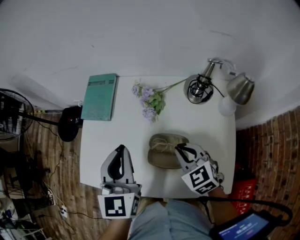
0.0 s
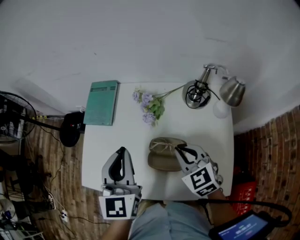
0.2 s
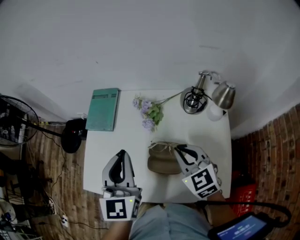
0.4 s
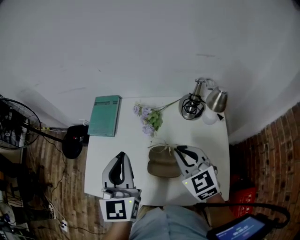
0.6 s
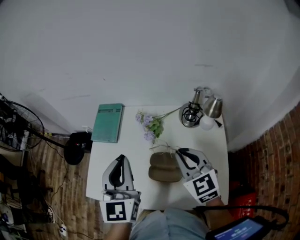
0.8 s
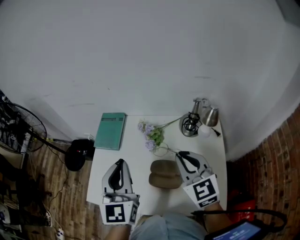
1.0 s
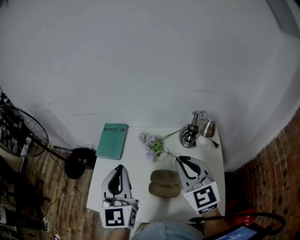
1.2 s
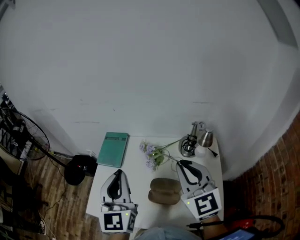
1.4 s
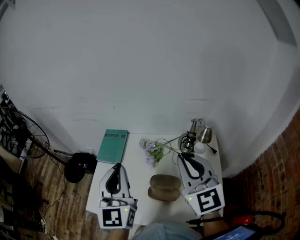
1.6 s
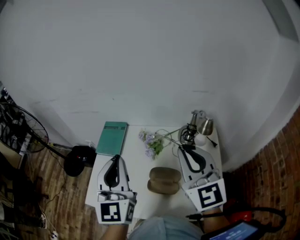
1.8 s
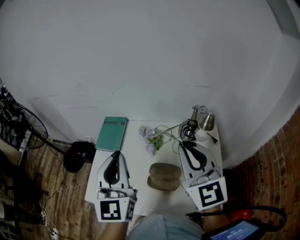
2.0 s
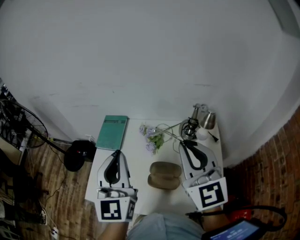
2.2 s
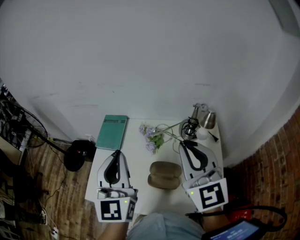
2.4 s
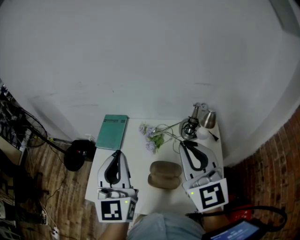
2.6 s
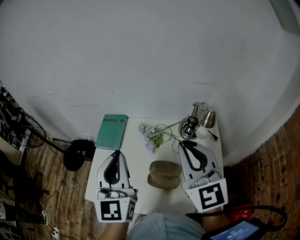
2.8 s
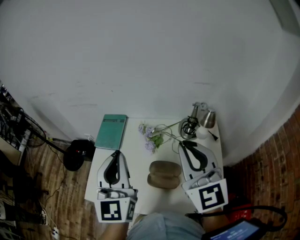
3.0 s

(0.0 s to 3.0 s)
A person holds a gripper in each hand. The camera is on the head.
0.0 s - 1.6 s: The right gripper travels upward by roughly 25 cm, and points its fingers some 40 degrees further upward, while the left gripper goes some 15 cm upward.
1.6 s - 3.0 s: There are only small adjustments of the grippers.

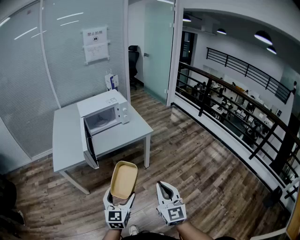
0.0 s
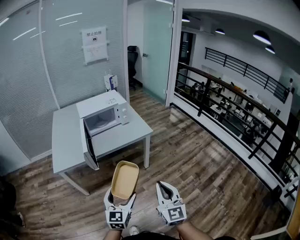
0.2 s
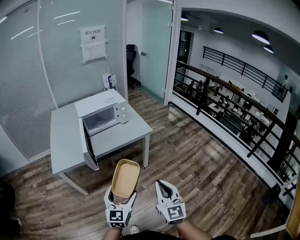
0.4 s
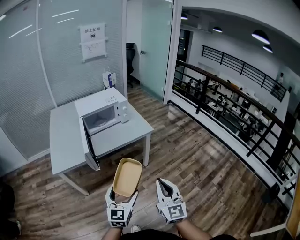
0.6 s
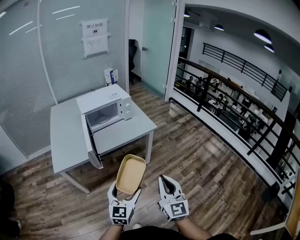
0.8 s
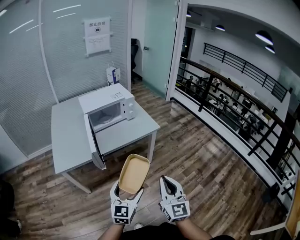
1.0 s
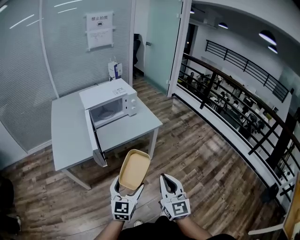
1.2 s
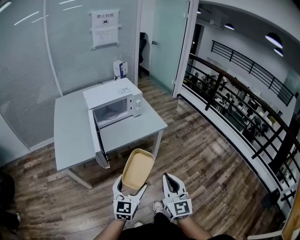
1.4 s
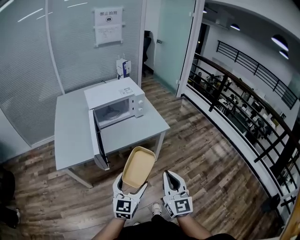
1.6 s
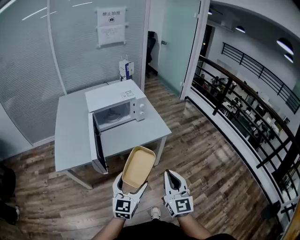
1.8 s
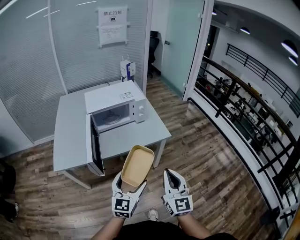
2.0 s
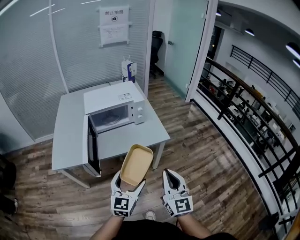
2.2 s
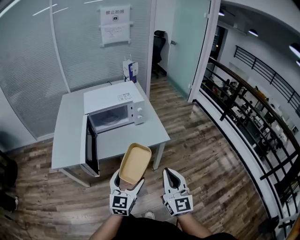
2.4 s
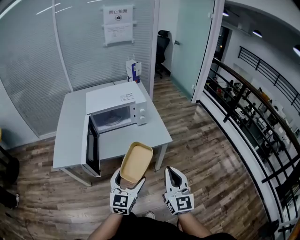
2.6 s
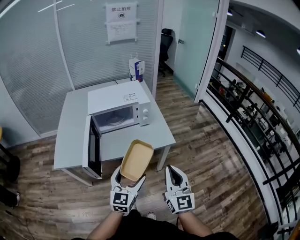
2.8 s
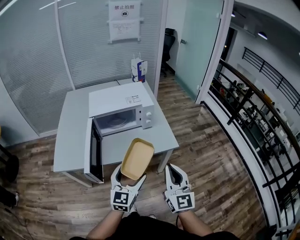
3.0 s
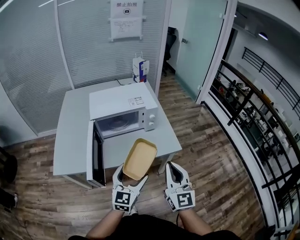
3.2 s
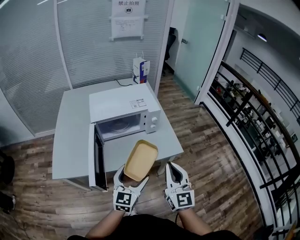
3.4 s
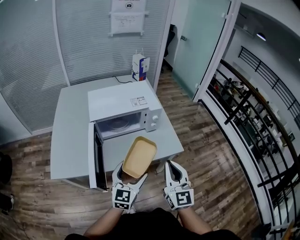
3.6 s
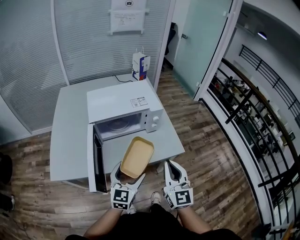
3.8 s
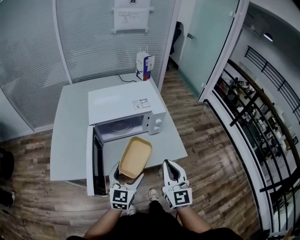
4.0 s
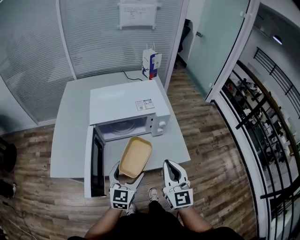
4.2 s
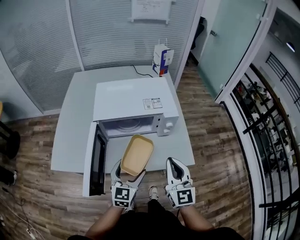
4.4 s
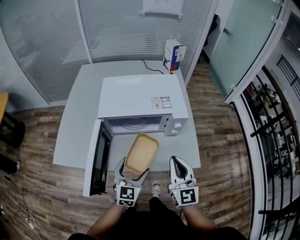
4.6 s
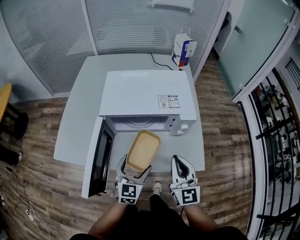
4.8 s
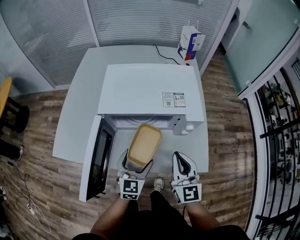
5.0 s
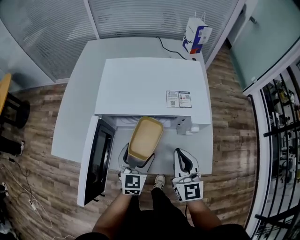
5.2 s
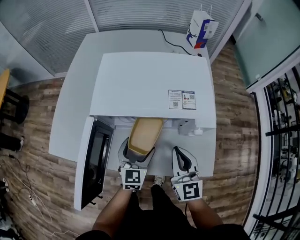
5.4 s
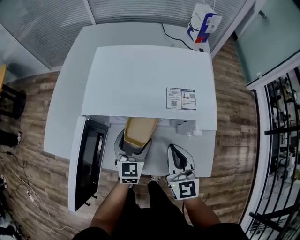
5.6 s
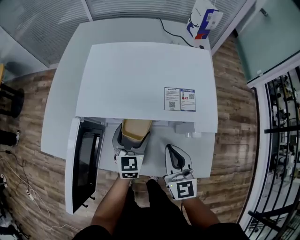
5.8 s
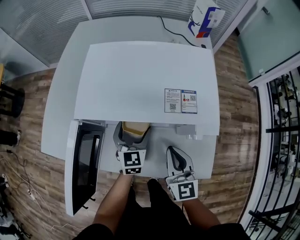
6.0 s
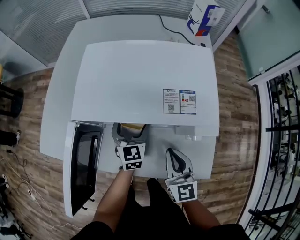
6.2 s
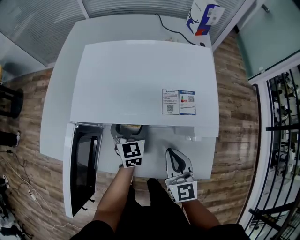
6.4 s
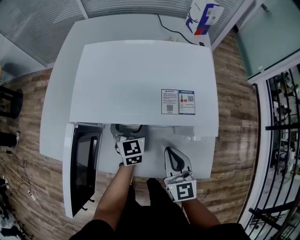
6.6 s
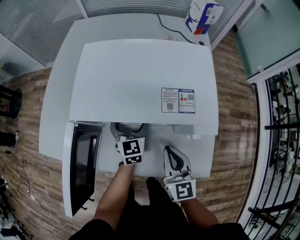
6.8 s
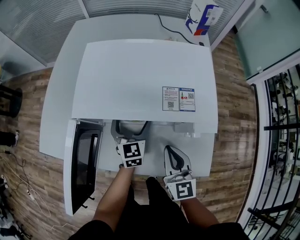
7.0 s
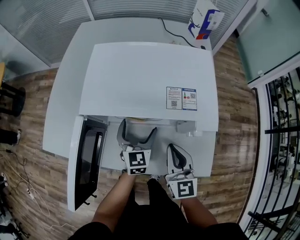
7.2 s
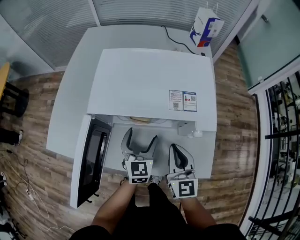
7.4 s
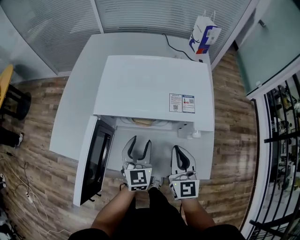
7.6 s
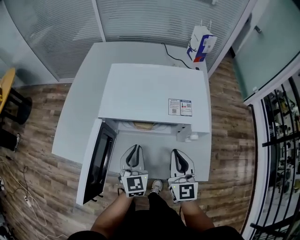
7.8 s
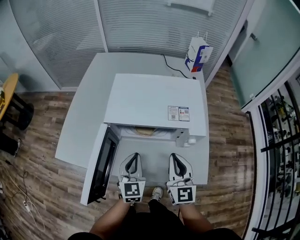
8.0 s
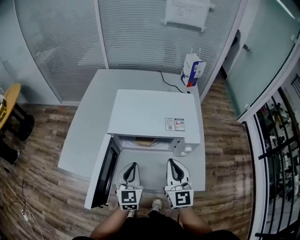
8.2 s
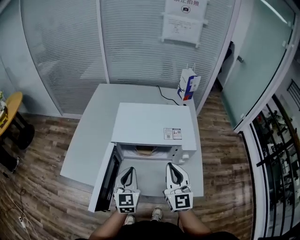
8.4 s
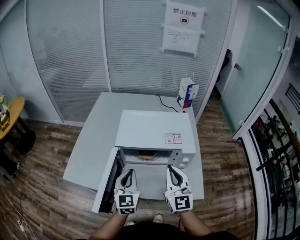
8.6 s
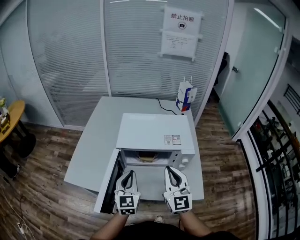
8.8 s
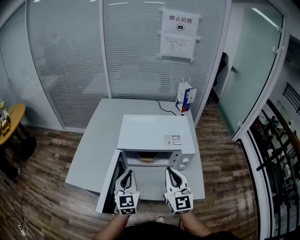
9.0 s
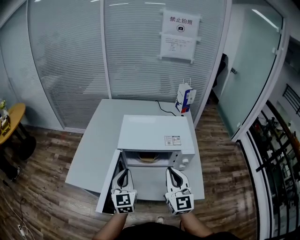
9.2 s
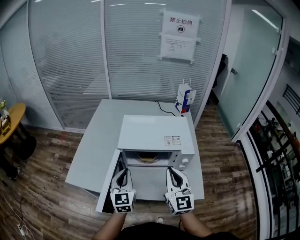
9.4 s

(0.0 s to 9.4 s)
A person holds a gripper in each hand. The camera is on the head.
0.0 s - 1.6 s: The right gripper moves forward and to the left, about 15 cm, while the left gripper goes approximately 10 cm forward.
1.6 s - 3.2 s: The grippers both shift forward by about 20 cm.
3.2 s - 4.8 s: The two grippers go approximately 20 cm forward and downward. The left gripper swivels approximately 20 degrees.
4.8 s - 6.2 s: The right gripper moves downward and forward, some 15 cm. The left gripper travels forward and downward by some 25 cm.
6.2 s - 7.8 s: The right gripper moves upward, some 10 cm, while the left gripper moves backward and upward, roughly 15 cm, and closes its fingers.
7.8 s - 9.4 s: The left gripper moves upward and to the left, some 15 cm; the right gripper shifts roughly 15 cm upward.

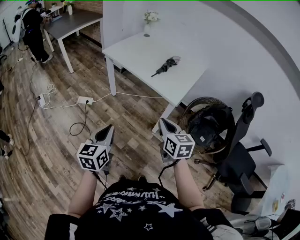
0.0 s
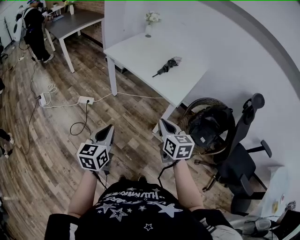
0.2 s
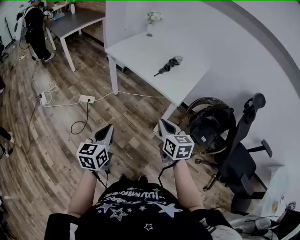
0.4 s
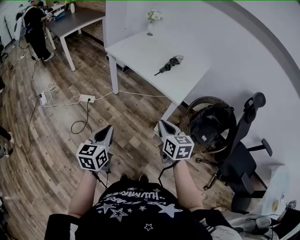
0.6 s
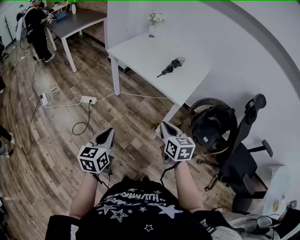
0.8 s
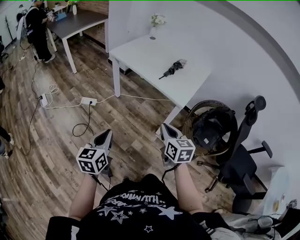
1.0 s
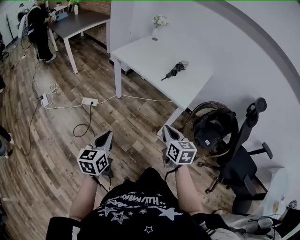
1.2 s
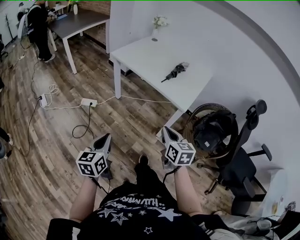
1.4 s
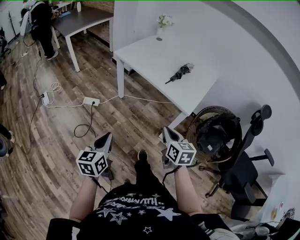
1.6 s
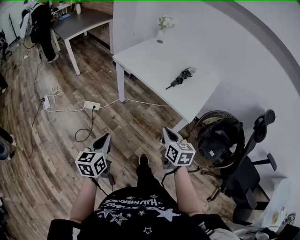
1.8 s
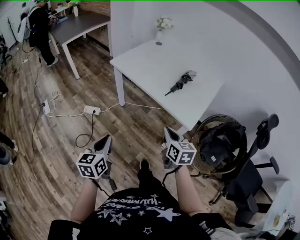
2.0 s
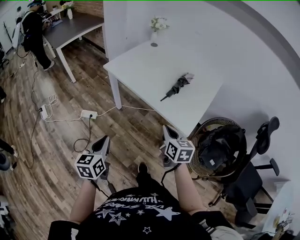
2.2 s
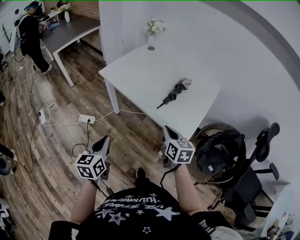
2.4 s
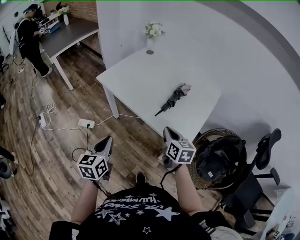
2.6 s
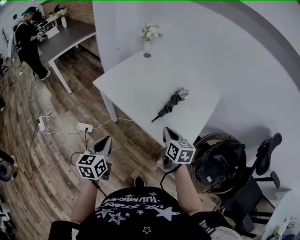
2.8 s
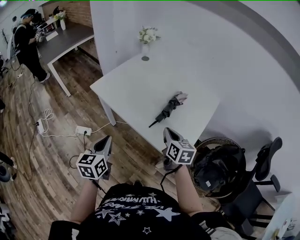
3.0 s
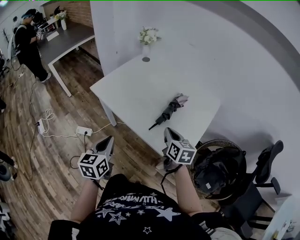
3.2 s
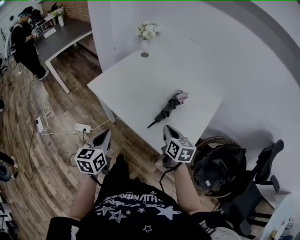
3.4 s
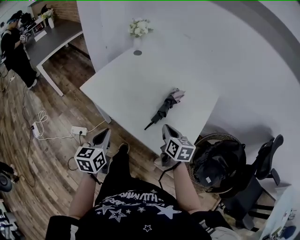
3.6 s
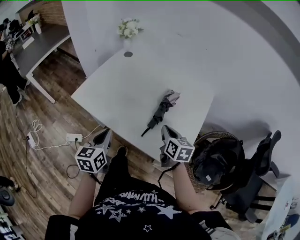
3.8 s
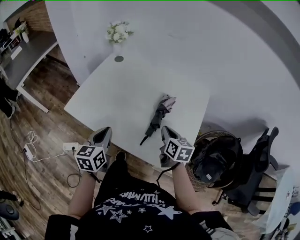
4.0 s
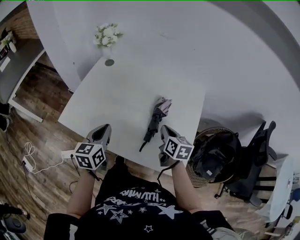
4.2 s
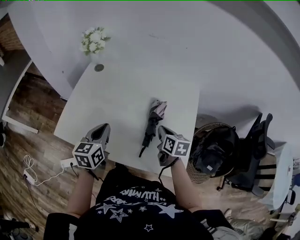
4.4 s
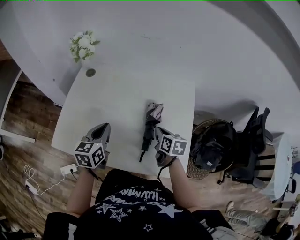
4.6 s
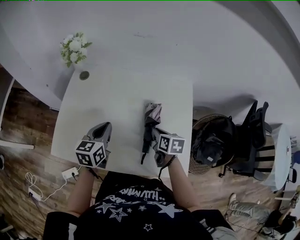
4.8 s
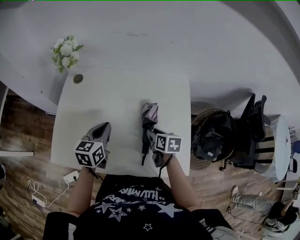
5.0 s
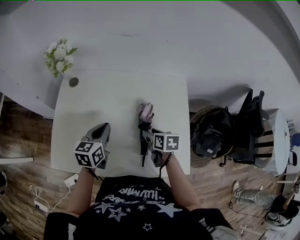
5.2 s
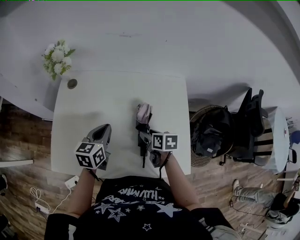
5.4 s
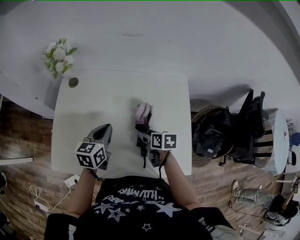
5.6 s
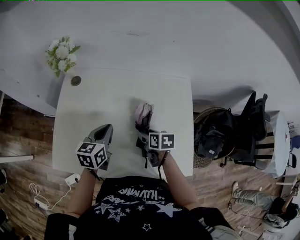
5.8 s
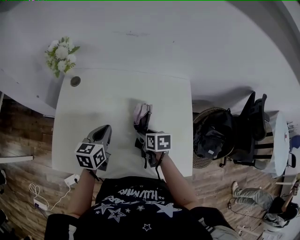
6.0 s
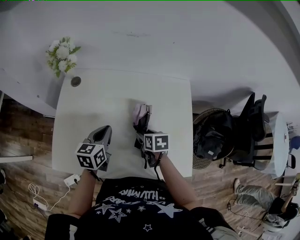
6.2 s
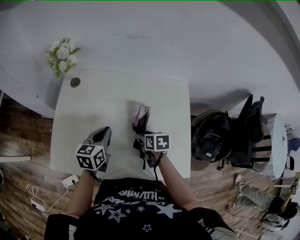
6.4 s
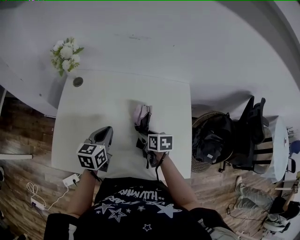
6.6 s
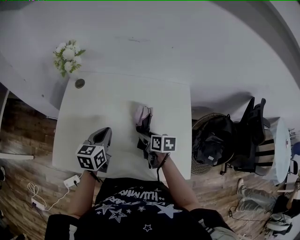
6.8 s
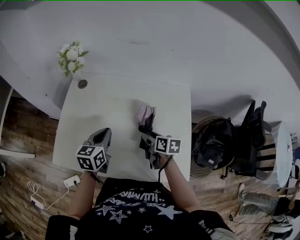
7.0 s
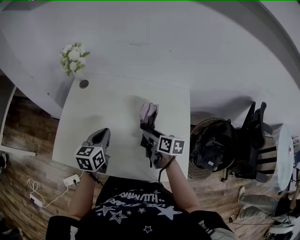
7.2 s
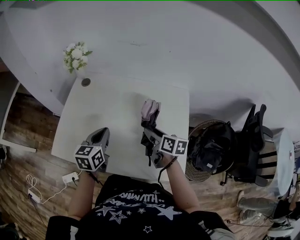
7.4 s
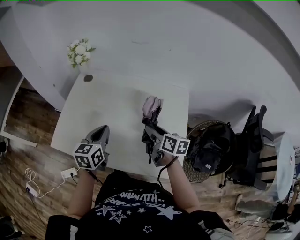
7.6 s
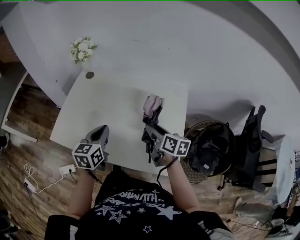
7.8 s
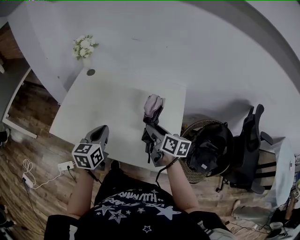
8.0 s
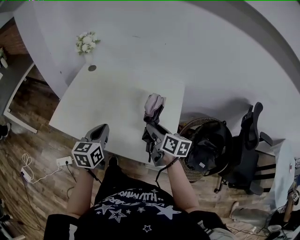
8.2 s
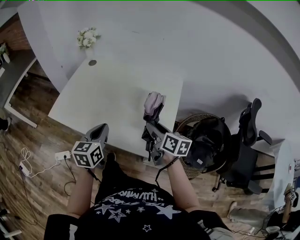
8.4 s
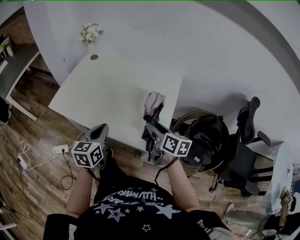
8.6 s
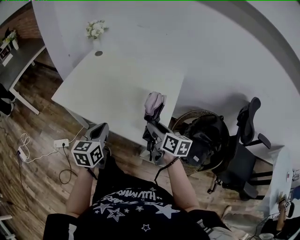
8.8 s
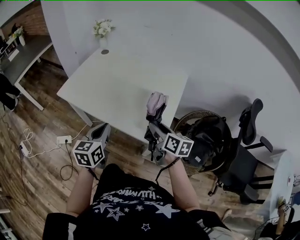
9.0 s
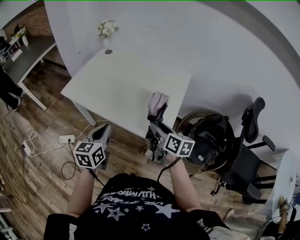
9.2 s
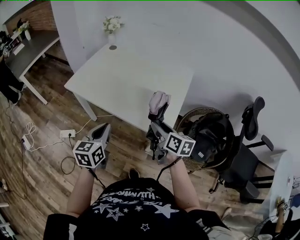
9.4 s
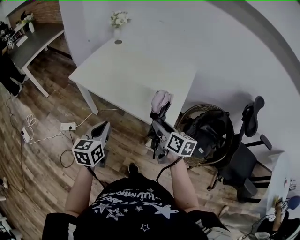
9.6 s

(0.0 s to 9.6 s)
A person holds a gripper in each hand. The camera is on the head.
0.0 s - 1.6 s: The right gripper changes place by about 5 cm. Meanwhile the left gripper shifts roughly 10 cm to the left.
1.6 s - 3.2 s: Both grippers move forward, roughly 35 cm.
3.2 s - 4.8 s: The right gripper changes place by approximately 20 cm, and turns by roughly 40 degrees; the left gripper changes place by approximately 35 cm, and changes its angle by some 40 degrees.
4.8 s - 6.4 s: The right gripper shifts about 5 cm to the left, and opens its fingers.
6.4 s - 8.0 s: The left gripper travels backward and upward by about 15 cm. Meanwhile the right gripper goes some 20 cm upward, to the right and backward, and tips its fingers upward by approximately 30 degrees.
8.0 s - 9.6 s: The two grippers go approximately 25 cm backward.

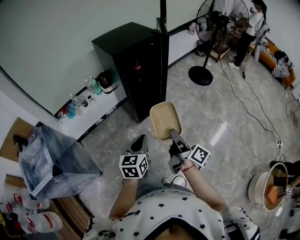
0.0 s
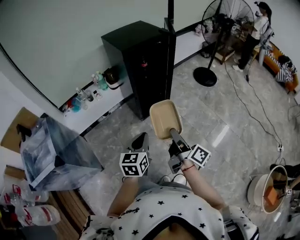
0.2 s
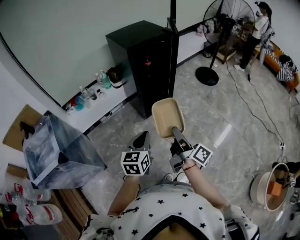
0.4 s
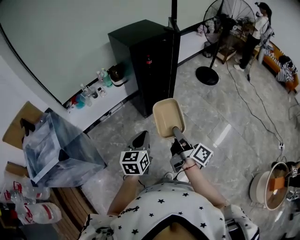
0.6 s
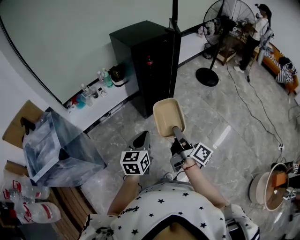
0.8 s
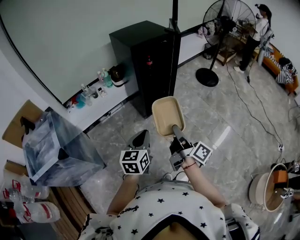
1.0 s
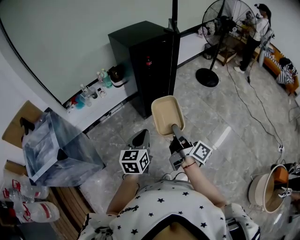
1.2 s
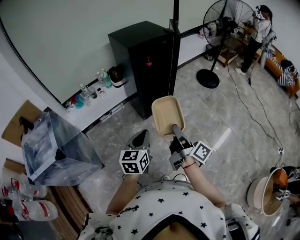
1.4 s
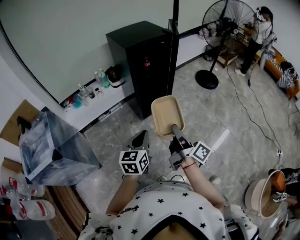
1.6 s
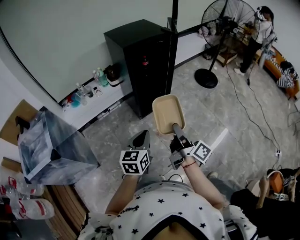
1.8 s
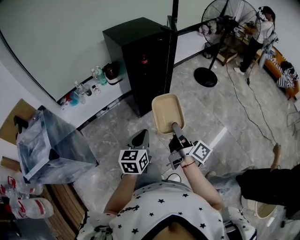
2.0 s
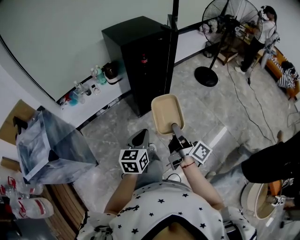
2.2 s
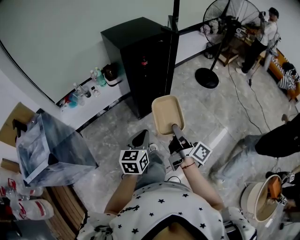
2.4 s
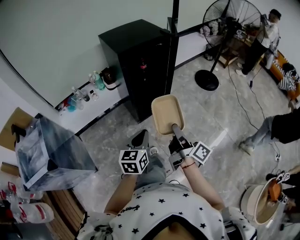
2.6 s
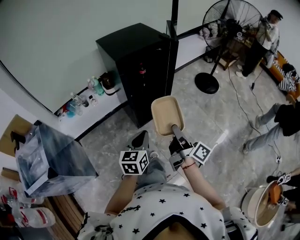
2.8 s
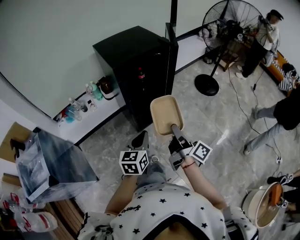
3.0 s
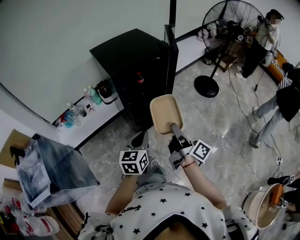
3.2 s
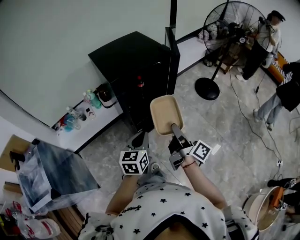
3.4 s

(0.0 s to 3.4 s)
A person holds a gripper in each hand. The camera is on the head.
1.6 s - 3.4 s: Both grippers move forward, some 25 cm.
